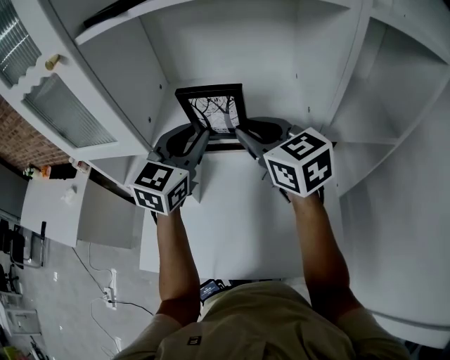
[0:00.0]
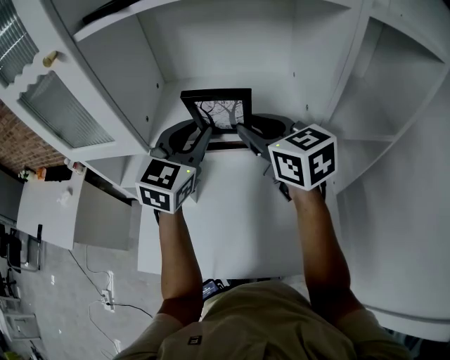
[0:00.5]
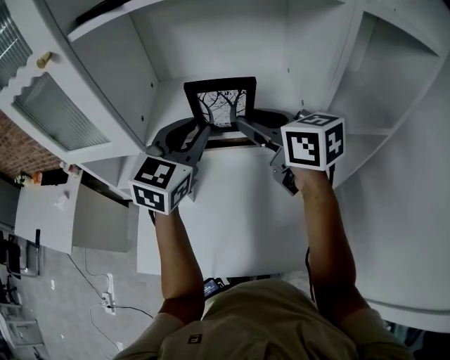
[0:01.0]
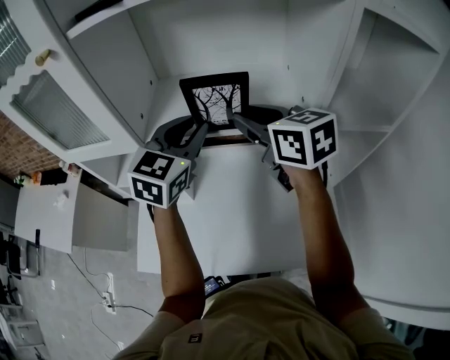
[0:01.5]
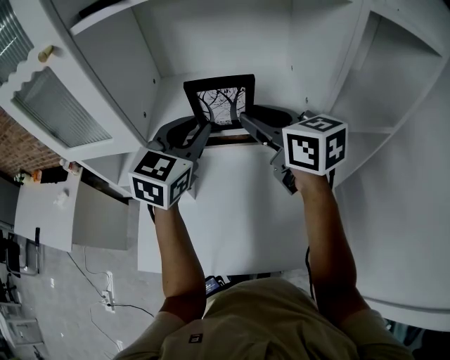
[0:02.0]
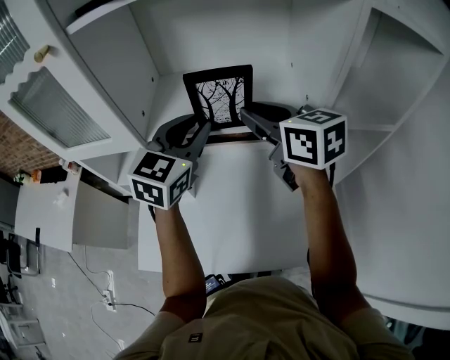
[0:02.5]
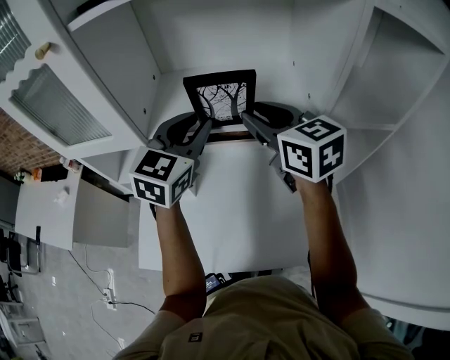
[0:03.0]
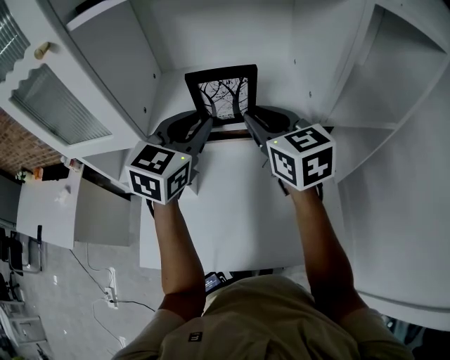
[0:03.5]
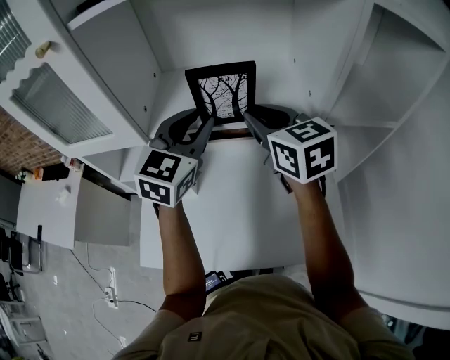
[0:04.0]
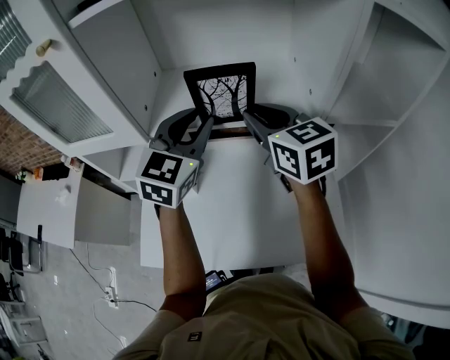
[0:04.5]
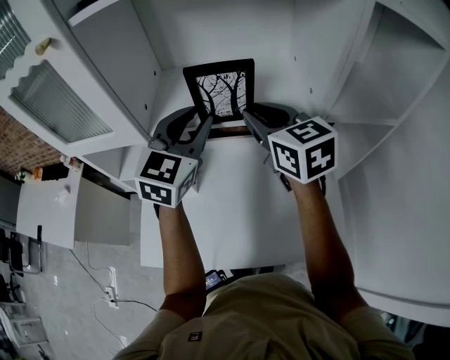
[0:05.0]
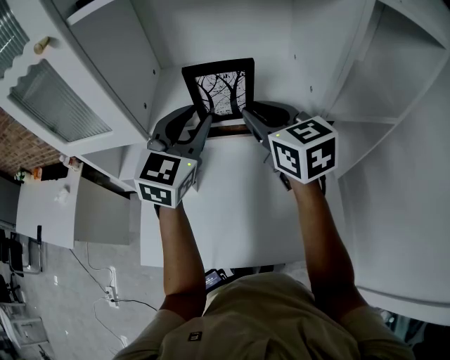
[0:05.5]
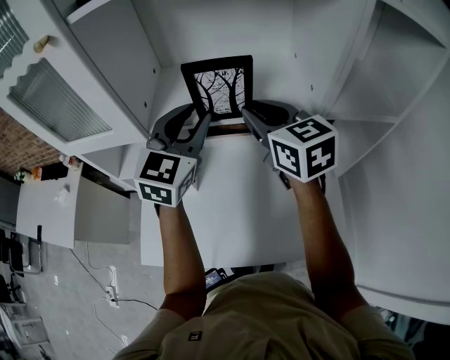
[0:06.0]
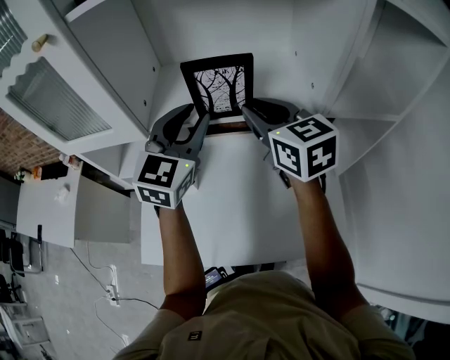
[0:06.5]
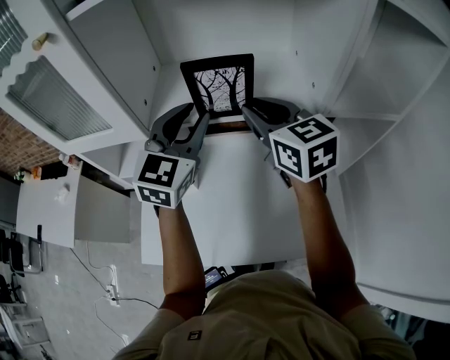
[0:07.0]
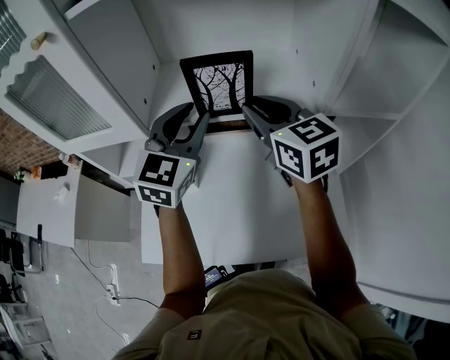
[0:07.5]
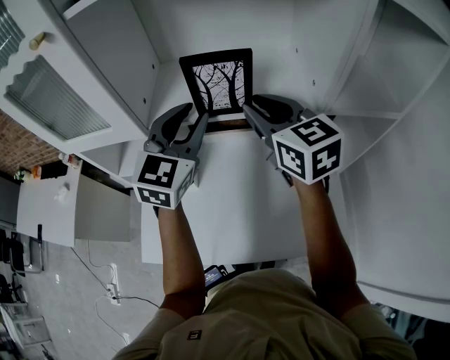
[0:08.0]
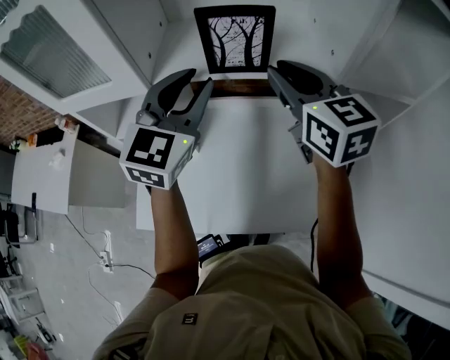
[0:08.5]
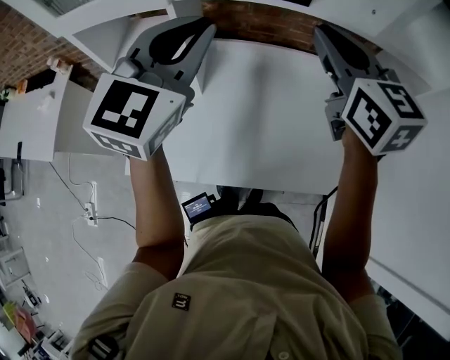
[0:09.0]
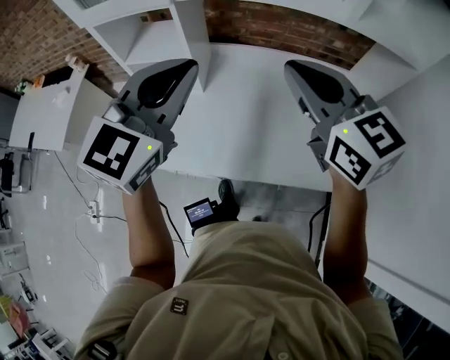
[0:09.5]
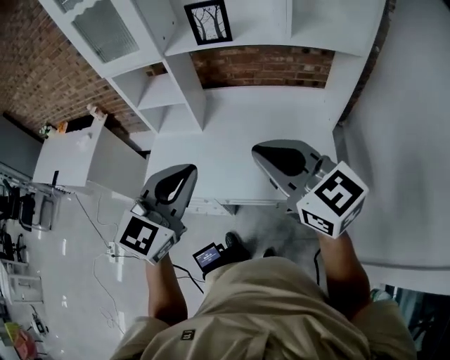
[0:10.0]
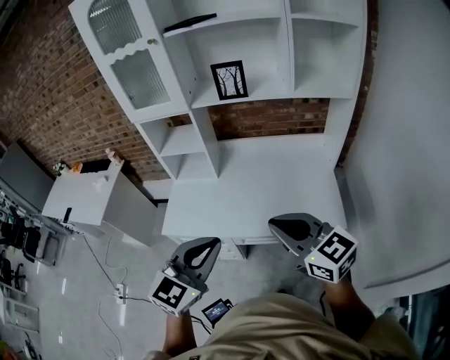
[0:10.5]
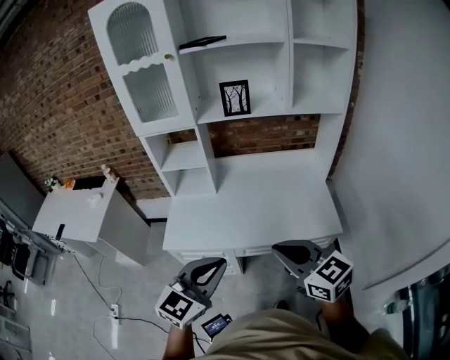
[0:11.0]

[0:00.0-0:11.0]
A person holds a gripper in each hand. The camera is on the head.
0:00.0 to 0:05.5: The grippers make only small movements.
0:05.5 to 0:07.5: Neither gripper changes place.
0:07.5 to 0:09.0: The left gripper goes some 10 cm backward and to the left, while the right gripper heads backward, covering approximately 5 cm.
0:09.0 to 0:11.0: The two grippers travel together, backward, about 50 cm.

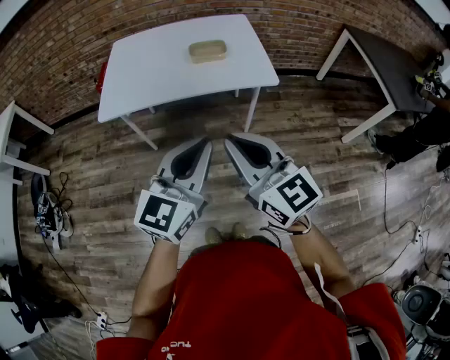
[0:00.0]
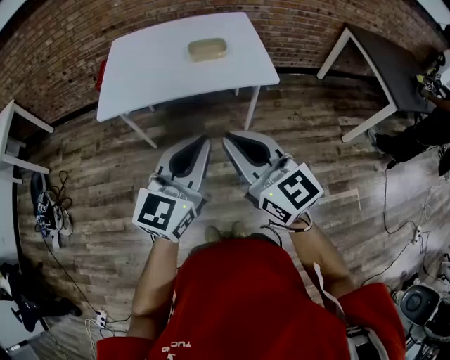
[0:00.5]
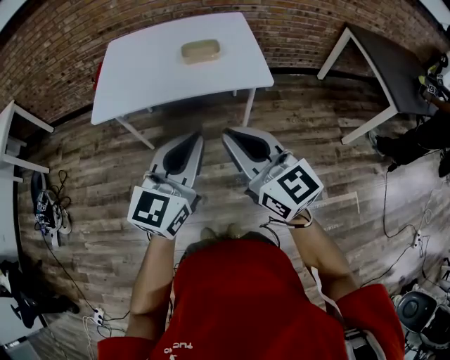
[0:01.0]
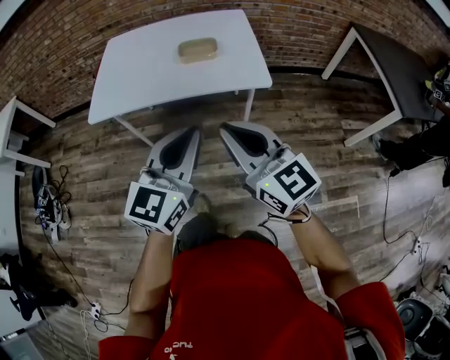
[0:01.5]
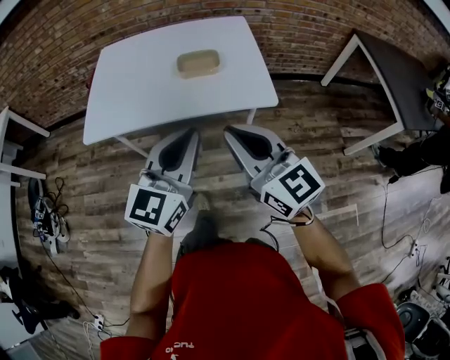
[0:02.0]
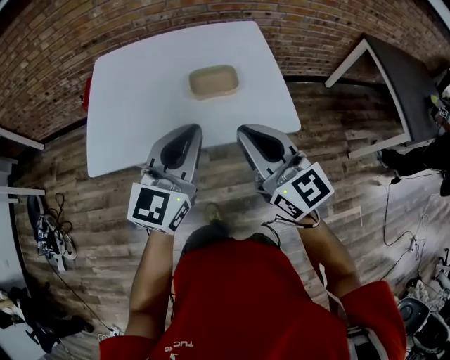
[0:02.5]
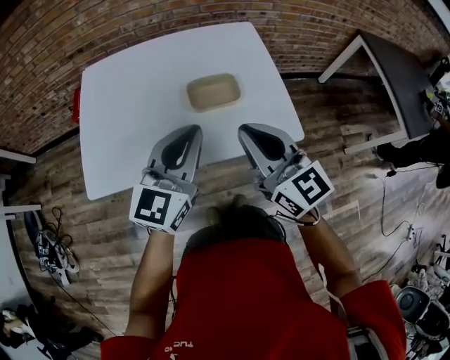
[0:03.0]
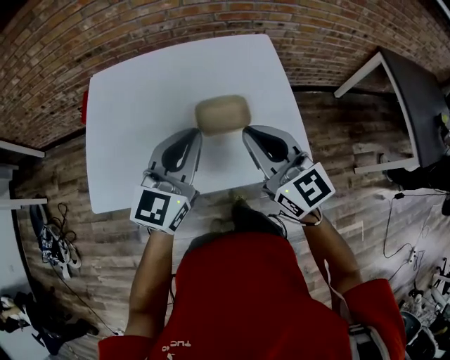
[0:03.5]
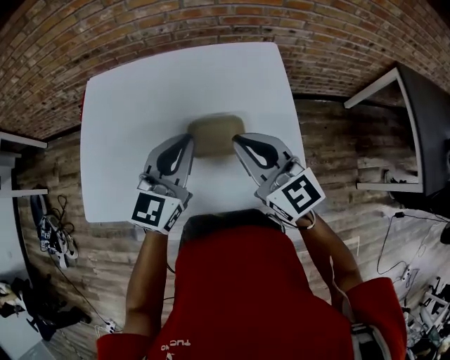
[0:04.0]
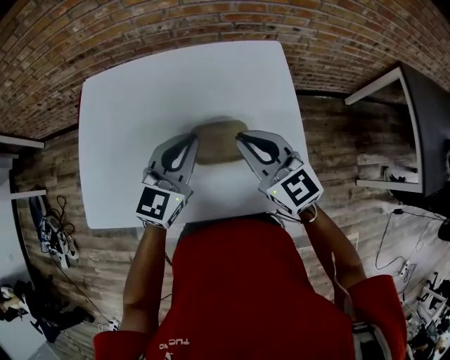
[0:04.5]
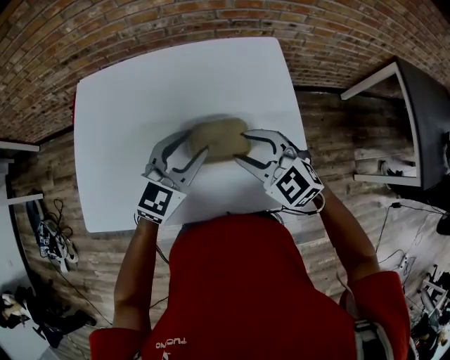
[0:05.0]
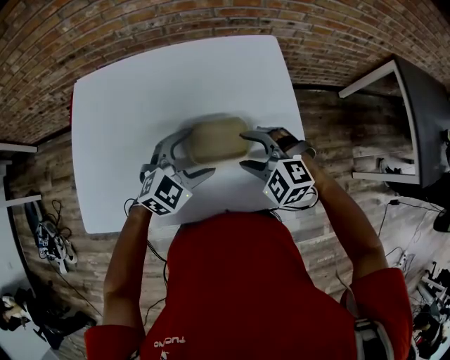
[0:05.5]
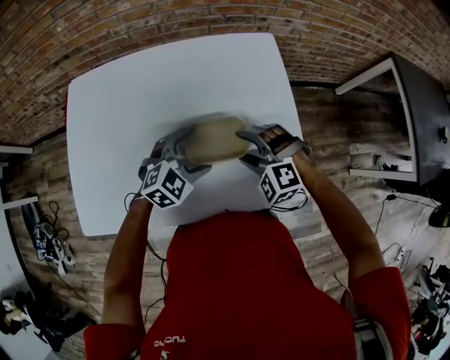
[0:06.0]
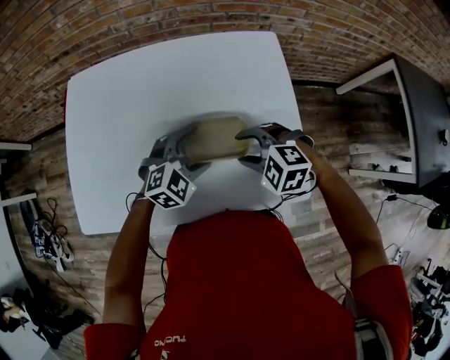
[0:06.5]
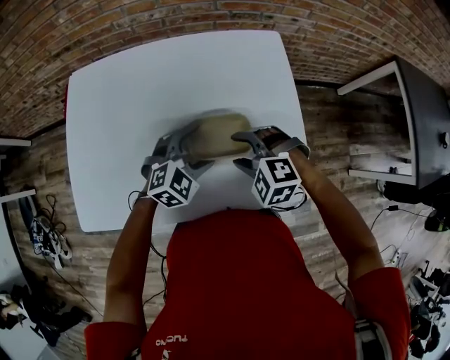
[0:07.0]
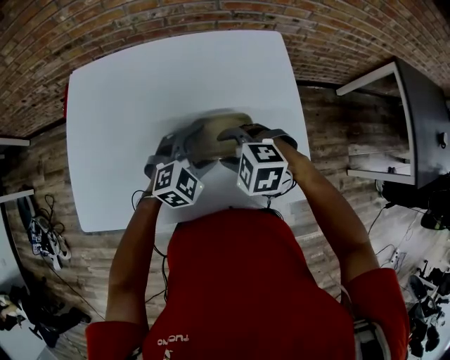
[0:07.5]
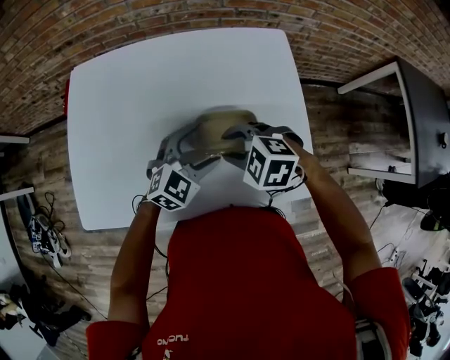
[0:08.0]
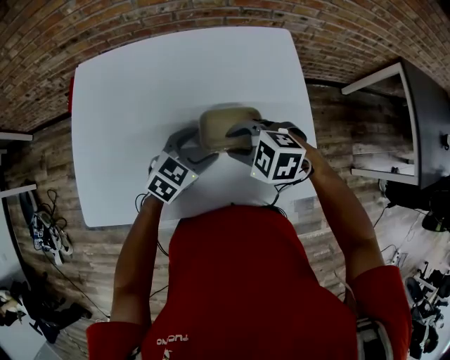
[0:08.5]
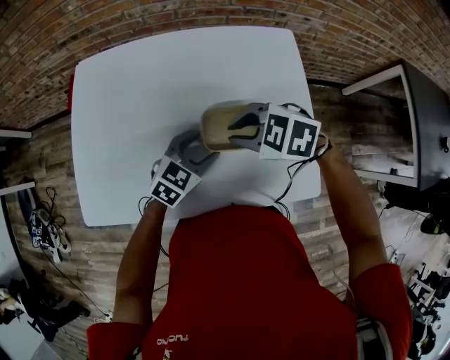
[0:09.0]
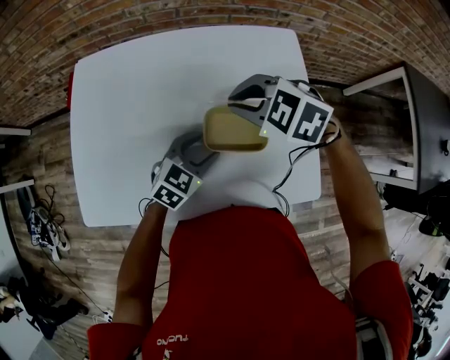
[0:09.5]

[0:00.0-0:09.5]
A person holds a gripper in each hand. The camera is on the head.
0:00.0 to 0:02.0: The left gripper heads forward, covering some 15 cm; the right gripper is displaced forward and to the right by roughly 15 cm.
0:02.0 to 0:04.0: Both grippers travel together forward, about 40 cm.
0:04.0 to 0:05.5: Both grippers move downward, approximately 15 cm. The left gripper rotates about 40 degrees, and opens; the right gripper tilts its fingers about 40 degrees downward, and opens.
0:05.5 to 0:07.5: The right gripper shifts approximately 5 cm to the left.
0:07.5 to 0:09.5: The right gripper ends up approximately 15 cm from where it was, and closes its fingers. The left gripper rotates roughly 30 degrees, and closes its fingers.

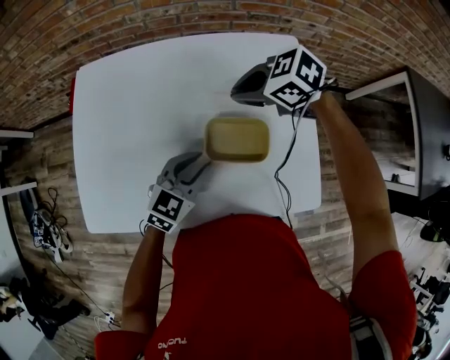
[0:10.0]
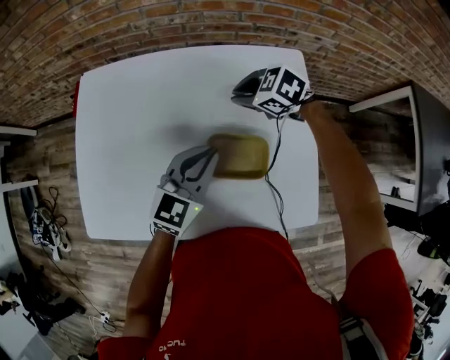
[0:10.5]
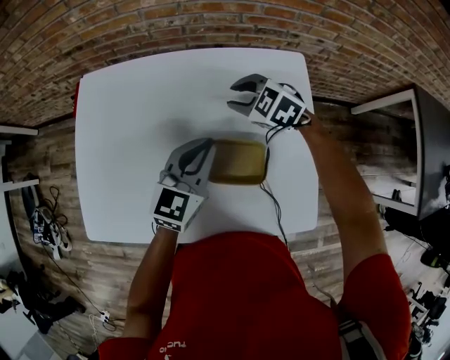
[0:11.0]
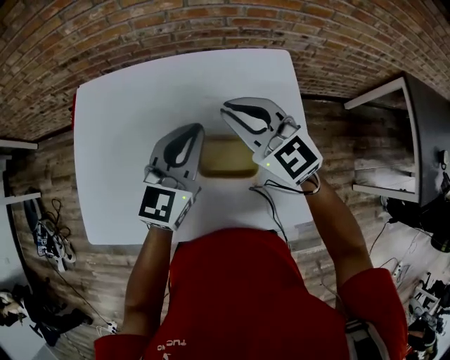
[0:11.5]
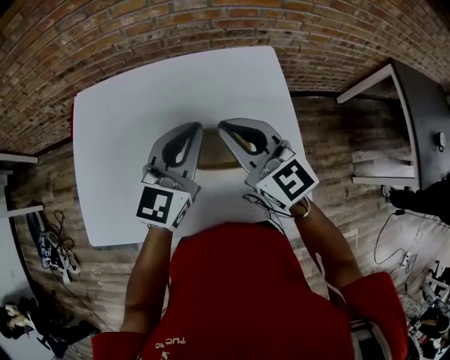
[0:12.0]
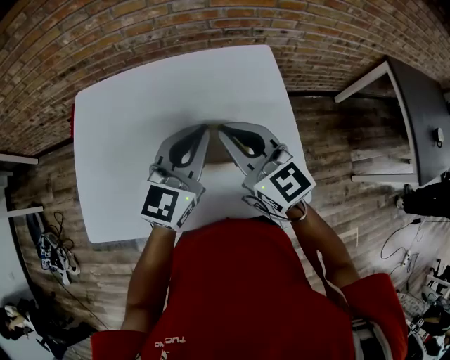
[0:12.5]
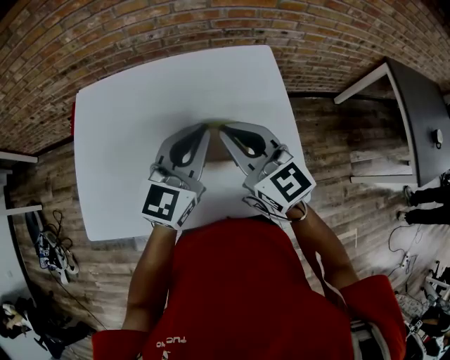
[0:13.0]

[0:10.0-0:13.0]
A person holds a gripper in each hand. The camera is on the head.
0:10.0 to 0:11.5: The right gripper is displaced upward by approximately 10 cm, and tilts its fingers about 40 degrees upward. Meanwhile the left gripper goes some 15 cm upward, and swivels about 20 degrees.
0:11.5 to 0:13.0: The left gripper shifts some 5 cm backward, while the right gripper travels backward by roughly 10 cm.

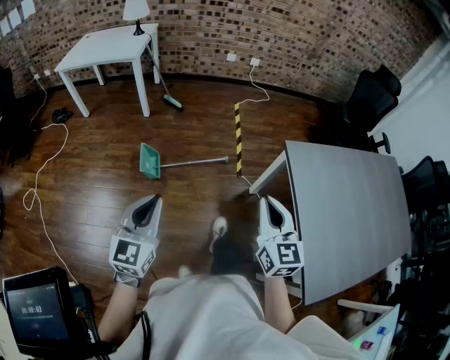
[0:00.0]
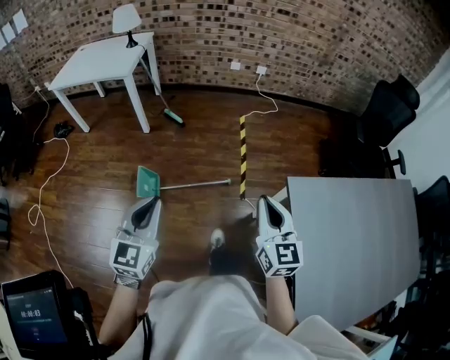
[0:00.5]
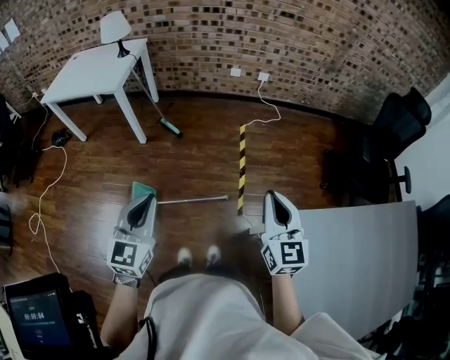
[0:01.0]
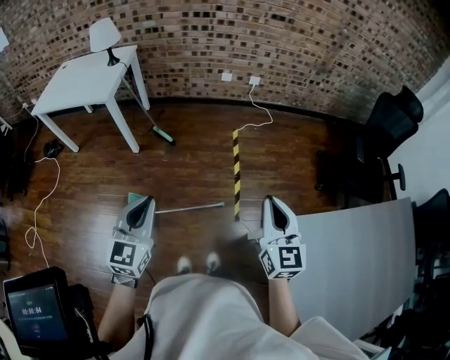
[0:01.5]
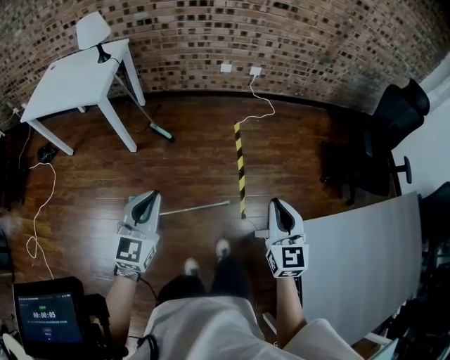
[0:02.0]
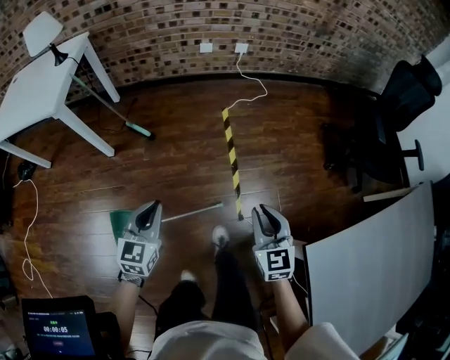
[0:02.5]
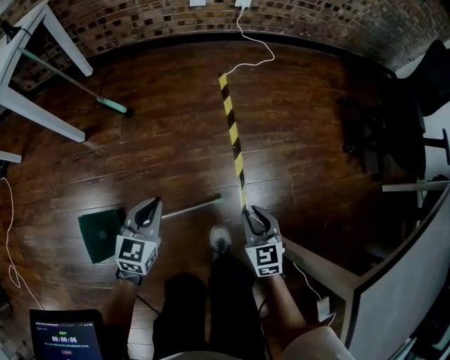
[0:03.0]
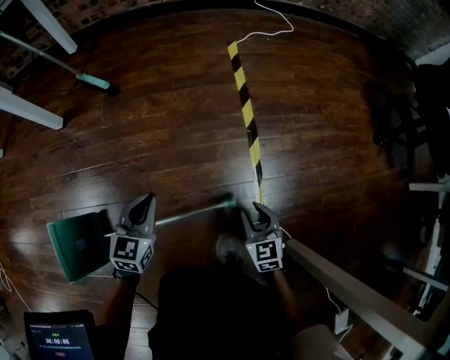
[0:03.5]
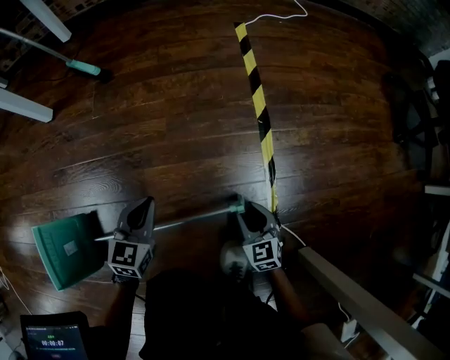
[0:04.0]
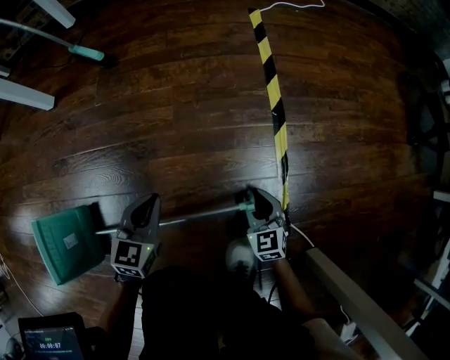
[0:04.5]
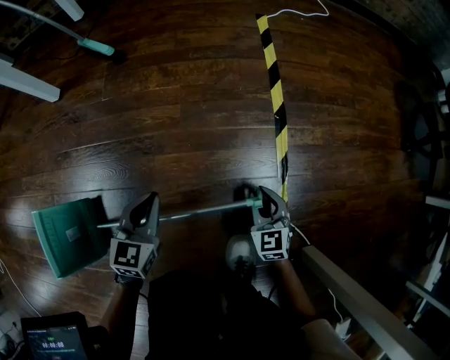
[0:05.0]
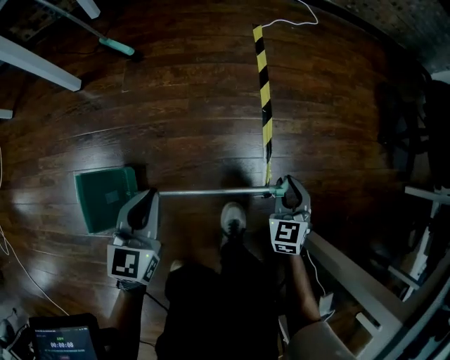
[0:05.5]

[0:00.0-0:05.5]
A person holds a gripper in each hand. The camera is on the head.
0:00.0 to 0:02.0: Both grippers are carried forward, about 40 cm.
0:02.0 to 0:03.5: The grippers both shift downward by about 80 cm. The left gripper turns by approximately 20 degrees. The right gripper changes its angle by some 30 degrees, and opens.
0:03.5 to 0:05.5: The grippers both shift upward by roughly 15 cm.
